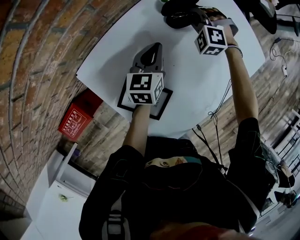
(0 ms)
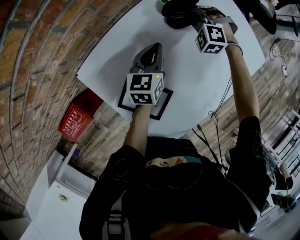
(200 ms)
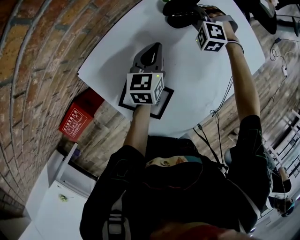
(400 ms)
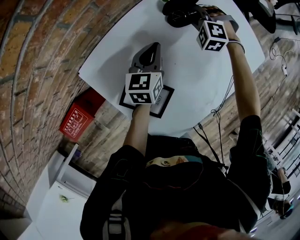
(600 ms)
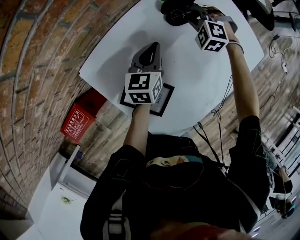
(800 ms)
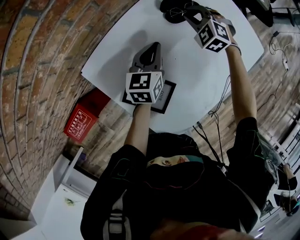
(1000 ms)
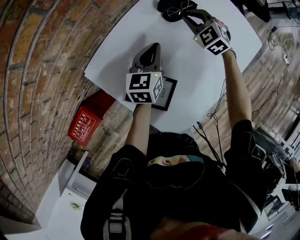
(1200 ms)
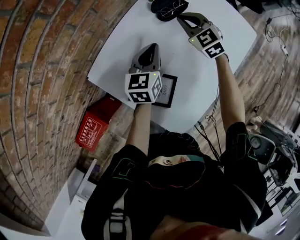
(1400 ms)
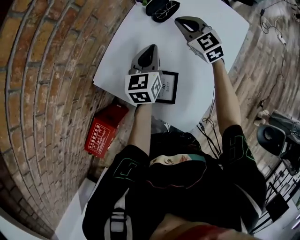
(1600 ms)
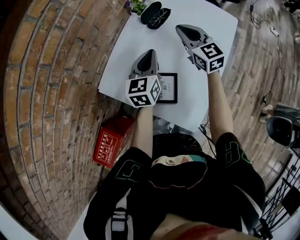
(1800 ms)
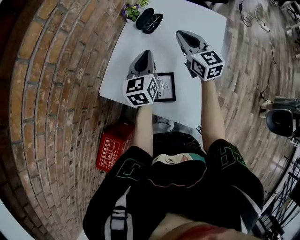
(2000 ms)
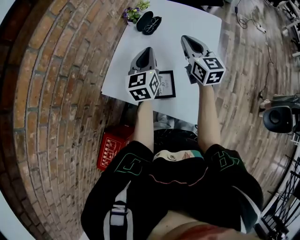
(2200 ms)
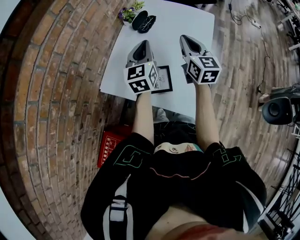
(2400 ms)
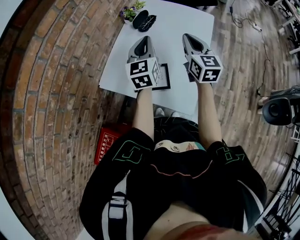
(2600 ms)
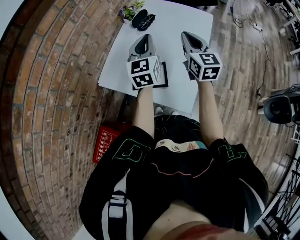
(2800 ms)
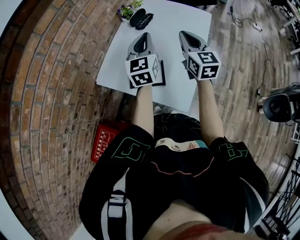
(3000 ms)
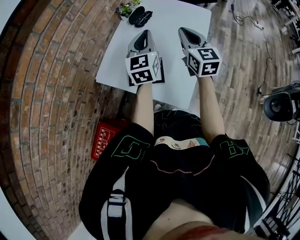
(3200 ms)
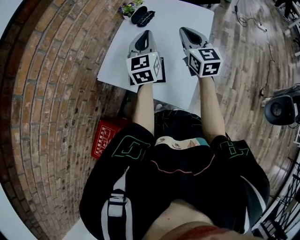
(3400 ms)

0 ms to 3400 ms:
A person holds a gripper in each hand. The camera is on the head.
0 ms to 1600 ms: The right gripper travels upward and backward by approximately 20 cm, and rotates around the line of its fingers by about 60 degrees, clockwise from behind. Meanwhile the left gripper shifts approximately 10 cm upward and backward.
1600 ms to 3400 ms: The left gripper goes about 20 cm upward, backward and to the right; the right gripper is displaced backward, upward and to the right by approximately 30 cm, and turns by about 40 degrees.

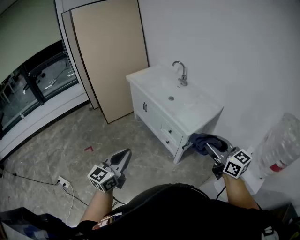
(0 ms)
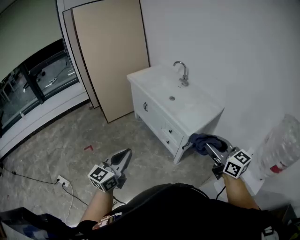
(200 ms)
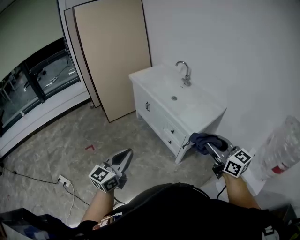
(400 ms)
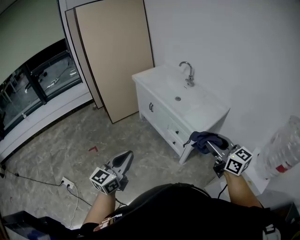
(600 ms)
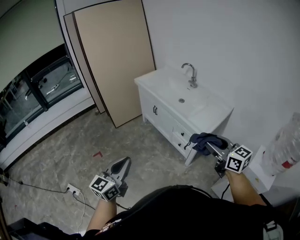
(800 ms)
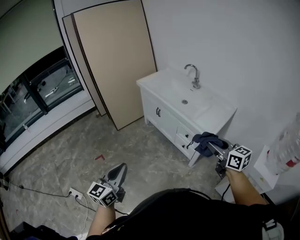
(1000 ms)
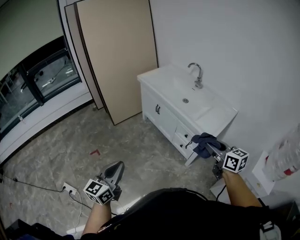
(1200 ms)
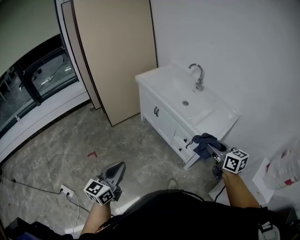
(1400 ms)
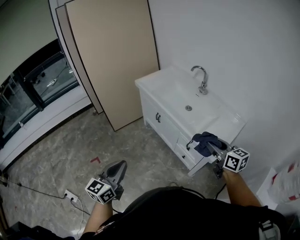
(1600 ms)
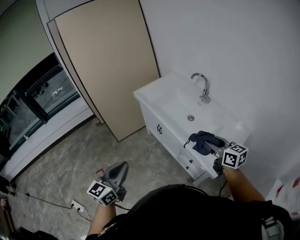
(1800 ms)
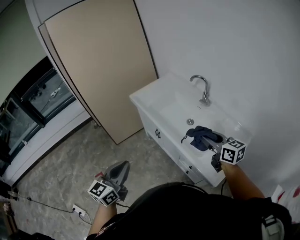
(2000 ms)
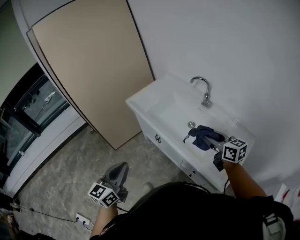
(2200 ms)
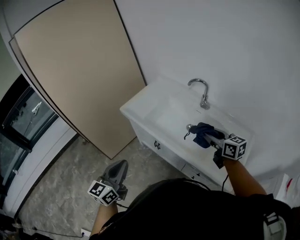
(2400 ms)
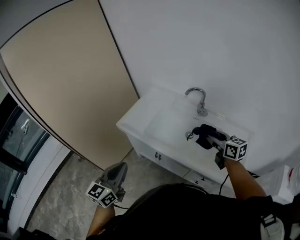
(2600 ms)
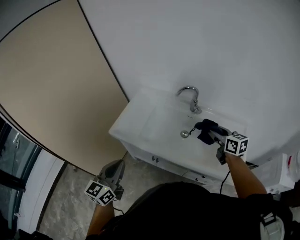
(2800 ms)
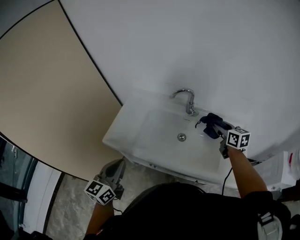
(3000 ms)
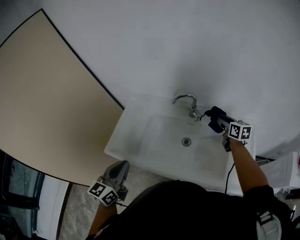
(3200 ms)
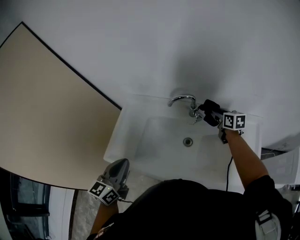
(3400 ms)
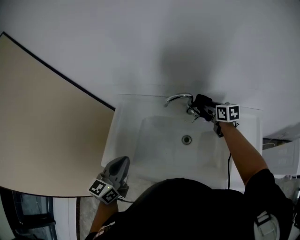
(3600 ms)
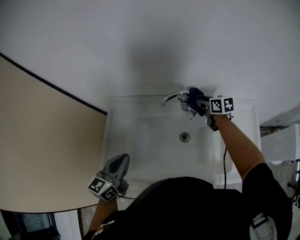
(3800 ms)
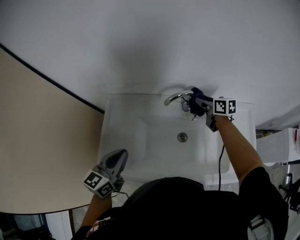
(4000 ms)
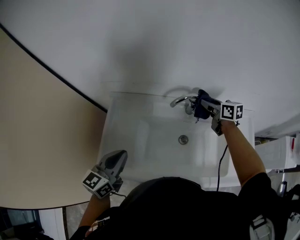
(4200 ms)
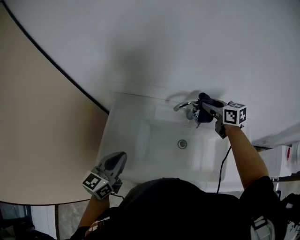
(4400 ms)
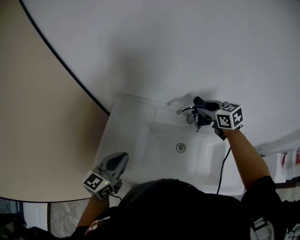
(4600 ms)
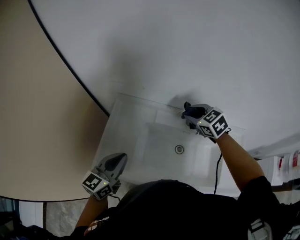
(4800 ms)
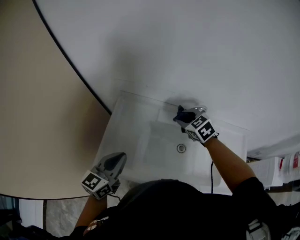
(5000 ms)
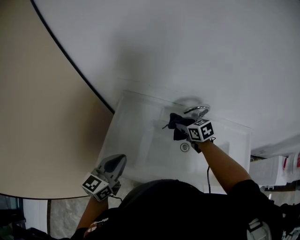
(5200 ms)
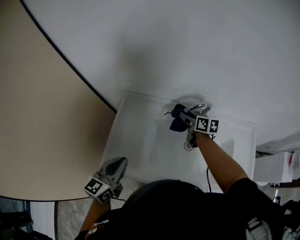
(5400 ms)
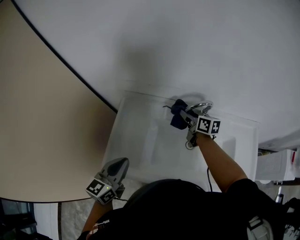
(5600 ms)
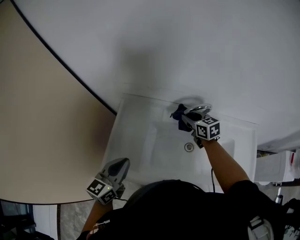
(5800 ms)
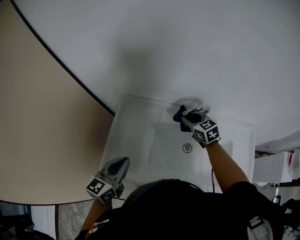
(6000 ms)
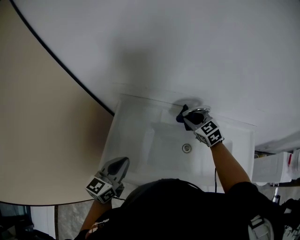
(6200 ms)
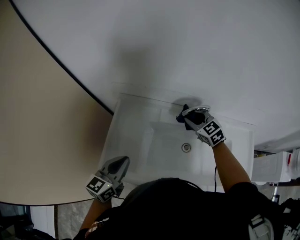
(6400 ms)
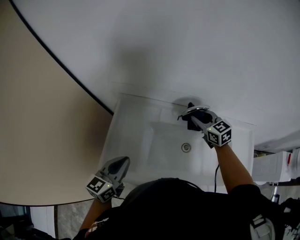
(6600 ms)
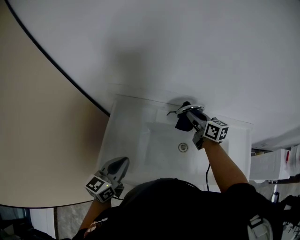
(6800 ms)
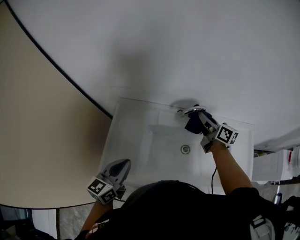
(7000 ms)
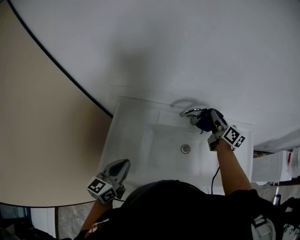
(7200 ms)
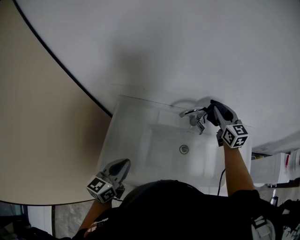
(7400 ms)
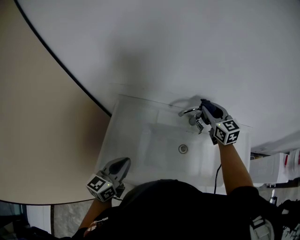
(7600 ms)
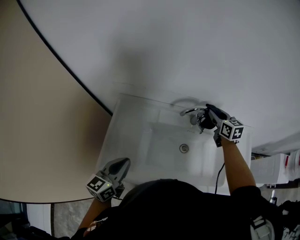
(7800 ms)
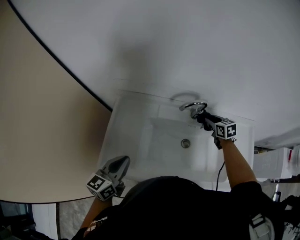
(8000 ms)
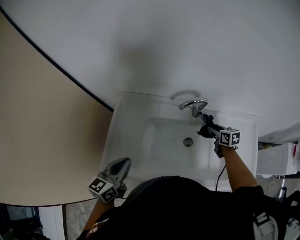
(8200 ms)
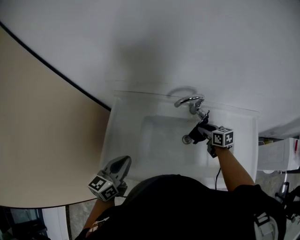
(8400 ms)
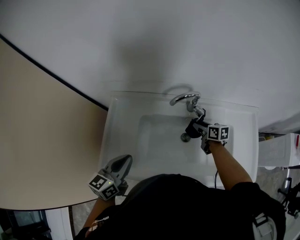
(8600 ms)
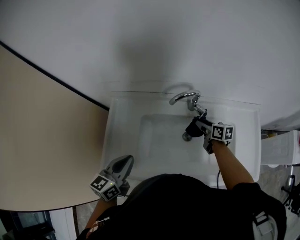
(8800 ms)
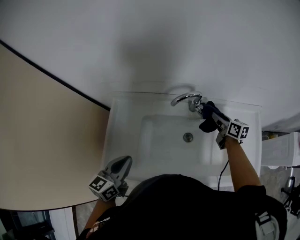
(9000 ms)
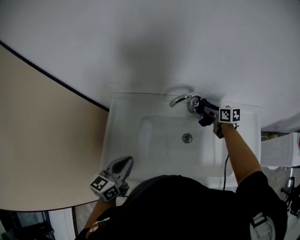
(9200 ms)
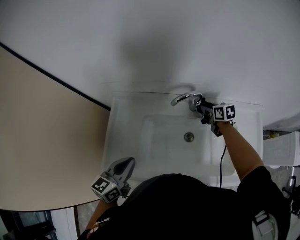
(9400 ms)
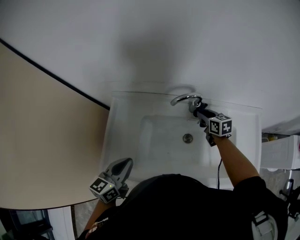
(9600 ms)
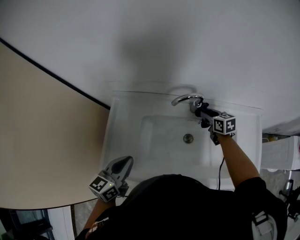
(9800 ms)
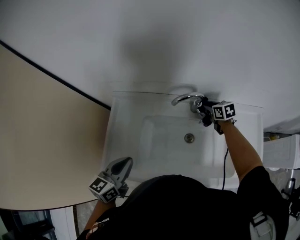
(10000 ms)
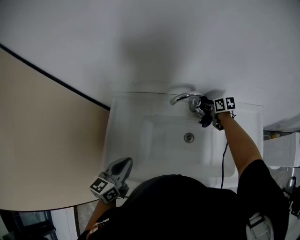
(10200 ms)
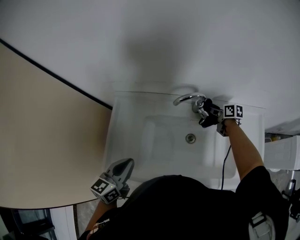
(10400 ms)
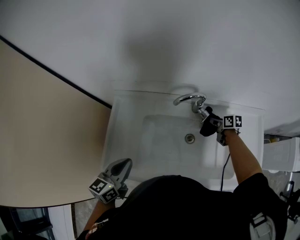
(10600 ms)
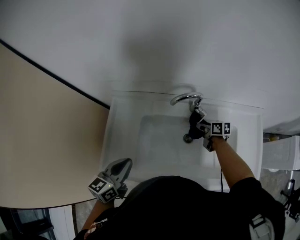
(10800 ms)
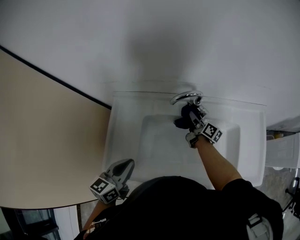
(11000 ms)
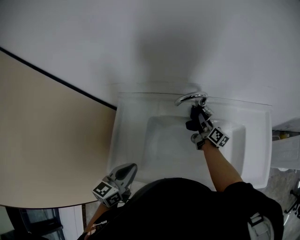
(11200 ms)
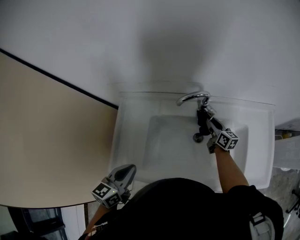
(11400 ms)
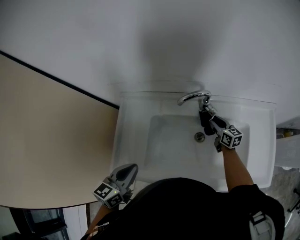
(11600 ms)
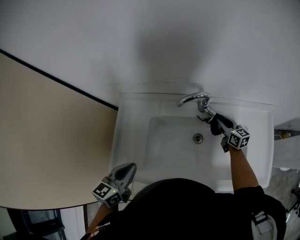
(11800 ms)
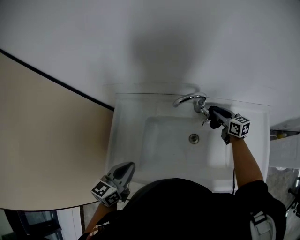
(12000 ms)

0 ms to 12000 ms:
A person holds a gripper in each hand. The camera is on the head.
0 ms to 1600 ms: The left gripper shifts some 25 cm forward and to the left. The right gripper moves forward, about 30 cm.
1600 ms to 3000 ms: The two grippers travel together, roughly 50 cm. The right gripper swivels roughly 40 degrees. The left gripper rotates some 30 degrees.
3000 ms to 4400 ms: The left gripper heads forward, covering some 25 cm; the right gripper travels forward and to the left by approximately 25 cm.
4400 ms to 6000 ms: The right gripper heads to the left and downward, covering about 15 cm, and turns by roughly 20 degrees.
6000 ms to 7600 ms: The right gripper moves upward and to the right, approximately 15 cm.
7600 ms to 9000 ms: The right gripper is displaced downward and to the right by about 20 cm, and twists some 40 degrees clockwise, seen from behind.
9000 ms to 10400 ms: The right gripper shifts some 10 cm downward and forward, and swivels about 20 degrees.
10400 ms to 12000 ms: The right gripper travels to the left and back again, roughly 10 cm each way, and changes its angle by some 30 degrees.

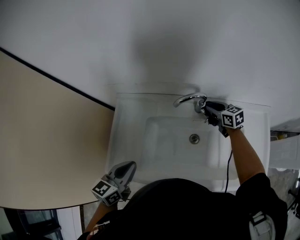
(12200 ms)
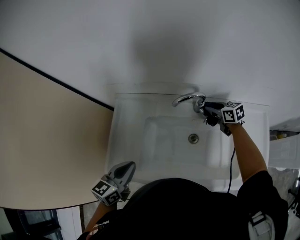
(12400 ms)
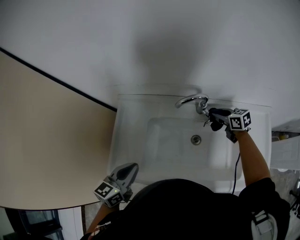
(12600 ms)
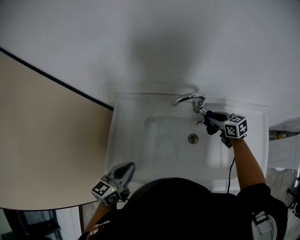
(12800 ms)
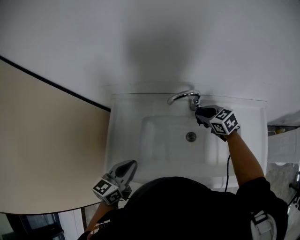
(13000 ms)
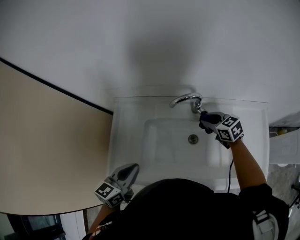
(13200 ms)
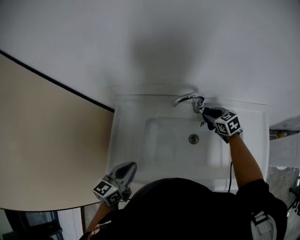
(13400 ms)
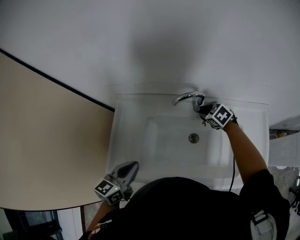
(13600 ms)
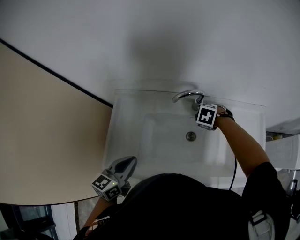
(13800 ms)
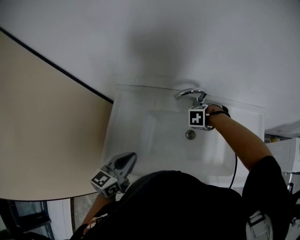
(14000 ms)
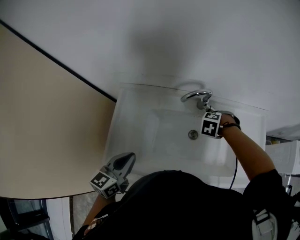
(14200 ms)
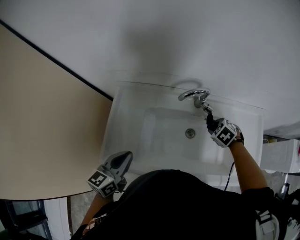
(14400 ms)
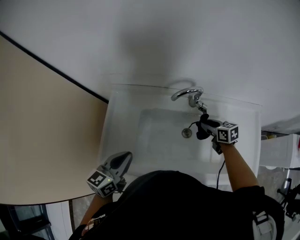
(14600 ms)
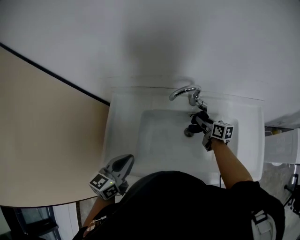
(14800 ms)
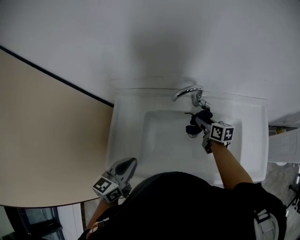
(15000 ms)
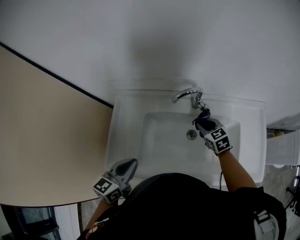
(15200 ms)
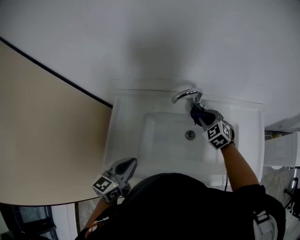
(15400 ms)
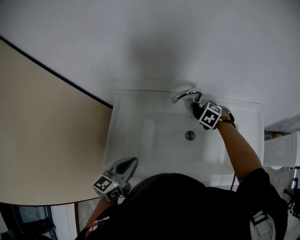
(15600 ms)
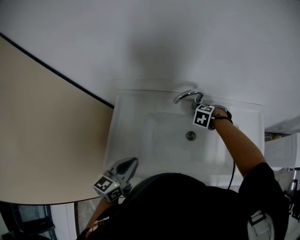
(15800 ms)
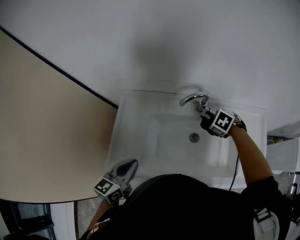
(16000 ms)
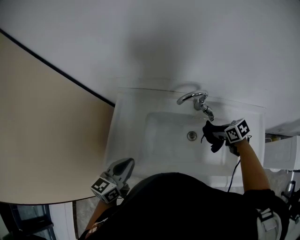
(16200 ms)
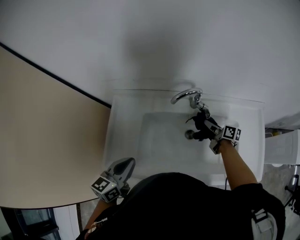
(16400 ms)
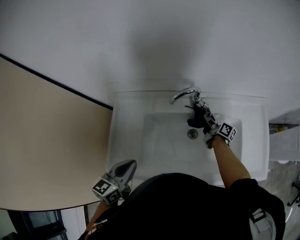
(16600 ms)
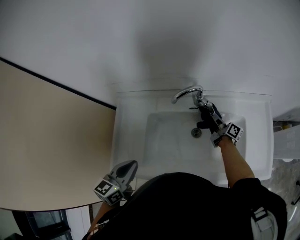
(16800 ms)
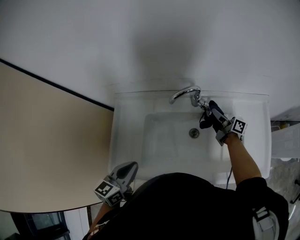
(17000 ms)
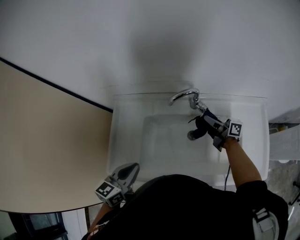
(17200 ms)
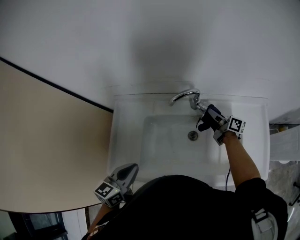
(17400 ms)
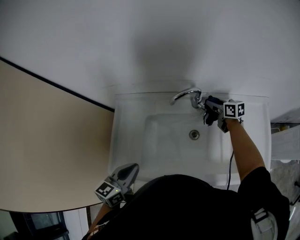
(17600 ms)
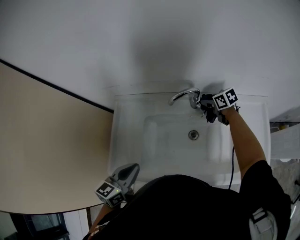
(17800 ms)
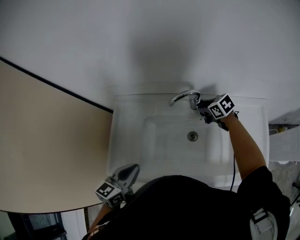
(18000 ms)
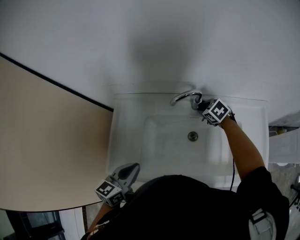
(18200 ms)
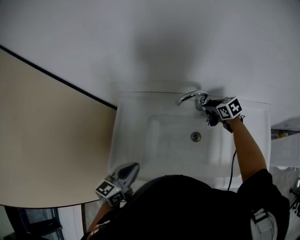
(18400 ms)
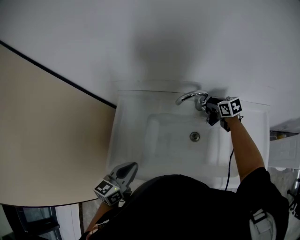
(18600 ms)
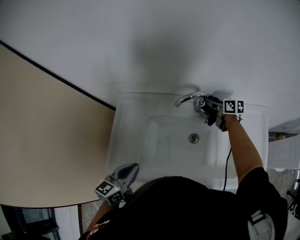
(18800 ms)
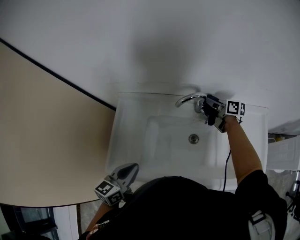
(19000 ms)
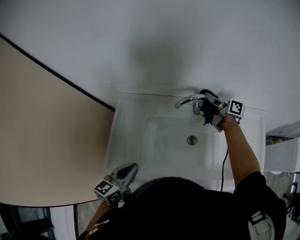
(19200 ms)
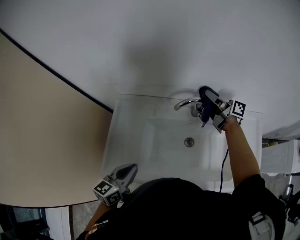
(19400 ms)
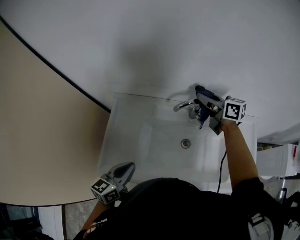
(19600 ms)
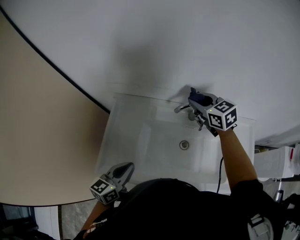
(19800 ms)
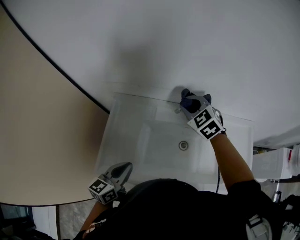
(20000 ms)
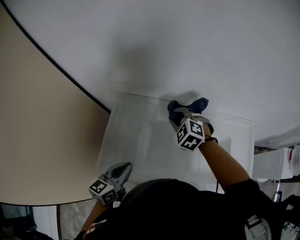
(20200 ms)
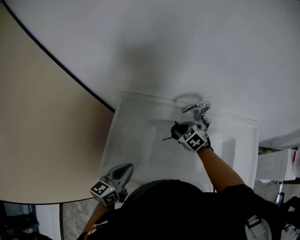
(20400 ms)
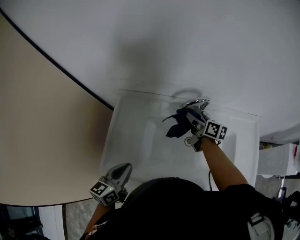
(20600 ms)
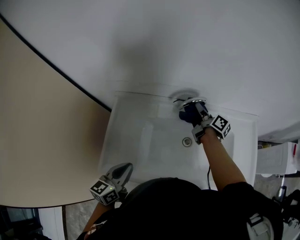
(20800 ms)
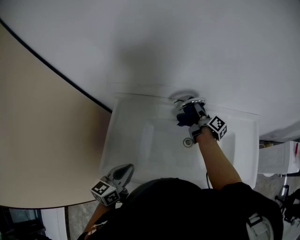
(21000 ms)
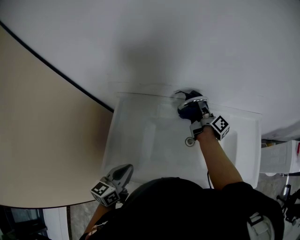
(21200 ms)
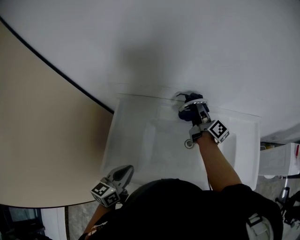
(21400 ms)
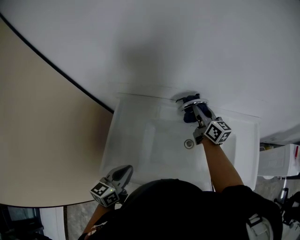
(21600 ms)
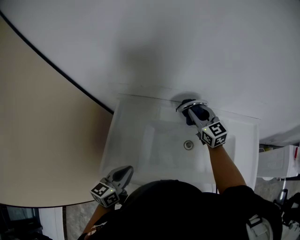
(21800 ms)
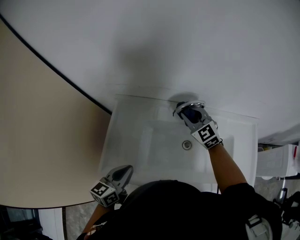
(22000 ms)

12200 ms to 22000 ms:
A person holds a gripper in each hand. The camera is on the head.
12200 ms to 13600 ms: The right gripper moves approximately 5 cm, and rotates about 40 degrees.
13600 ms to 15000 ms: The right gripper twists about 50 degrees clockwise, seen from behind.
15000 ms to 16400 ms: The right gripper moves up and down over some 10 cm, changing direction 3 times.
16400 ms to 17800 ms: The right gripper heads forward, covering about 10 cm, and rotates about 40 degrees.
17800 ms to 19200 ms: The right gripper travels upward by approximately 10 cm, and angles its fingers upward, by some 40 degrees.
19200 ms to 20600 ms: The right gripper moves up and down over some 20 cm, changing direction 2 times, while the left gripper moves roughly 5 cm.
20600 ms to 22000 ms: The right gripper is displaced upward by roughly 5 cm, reaches some 5 cm to the right, then returns, and rotates around the line of its fingers by about 70 degrees, counterclockwise from behind.
